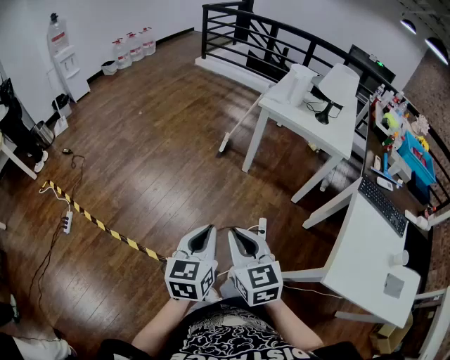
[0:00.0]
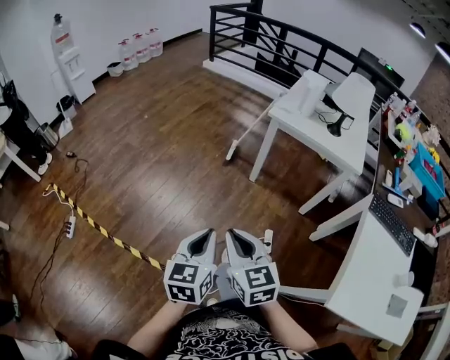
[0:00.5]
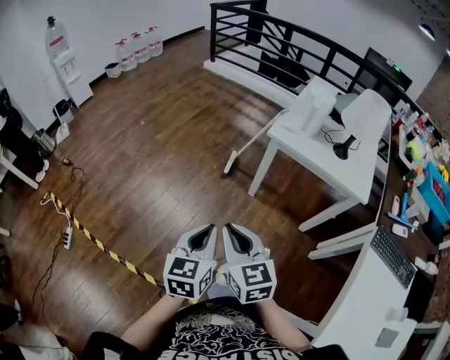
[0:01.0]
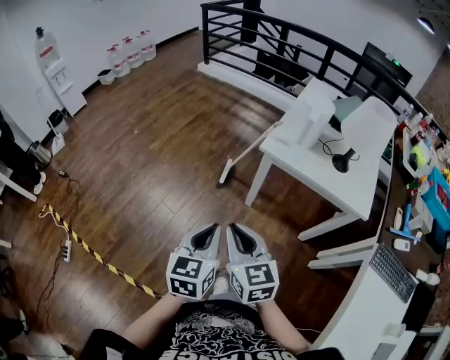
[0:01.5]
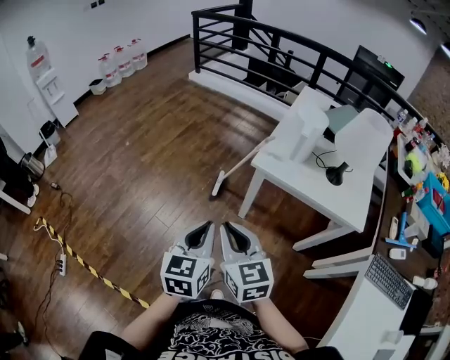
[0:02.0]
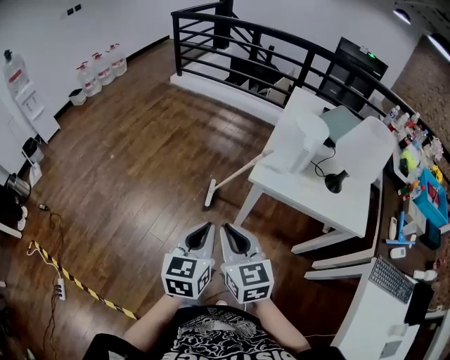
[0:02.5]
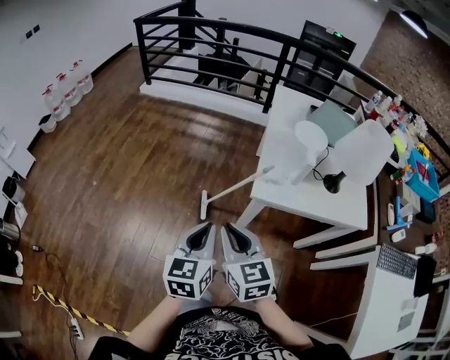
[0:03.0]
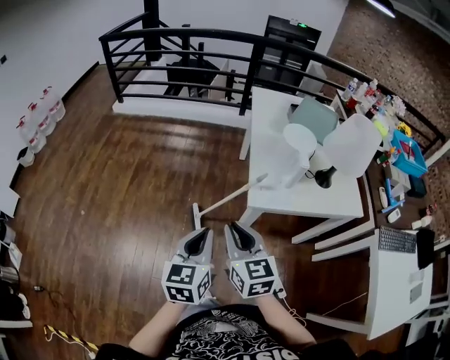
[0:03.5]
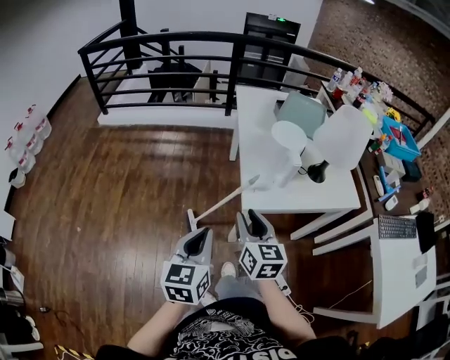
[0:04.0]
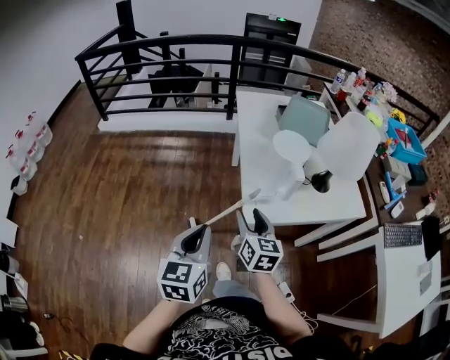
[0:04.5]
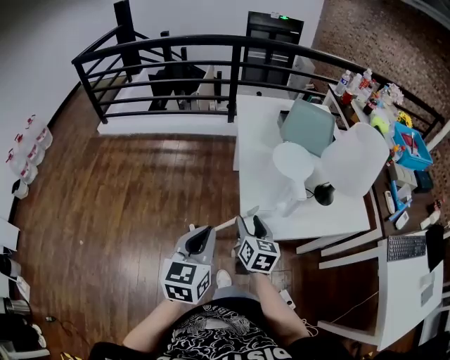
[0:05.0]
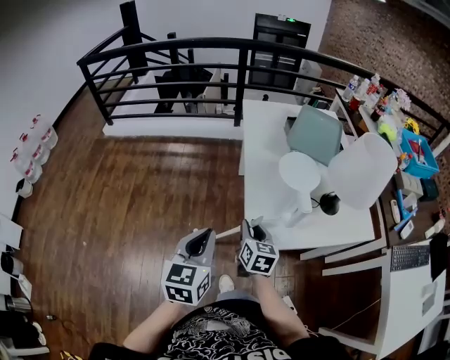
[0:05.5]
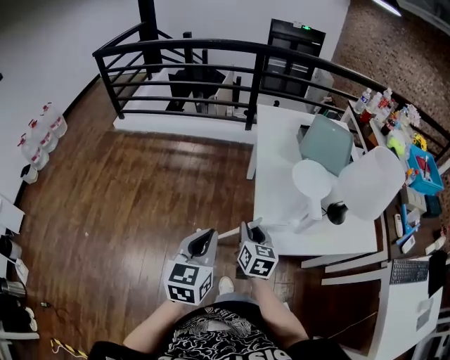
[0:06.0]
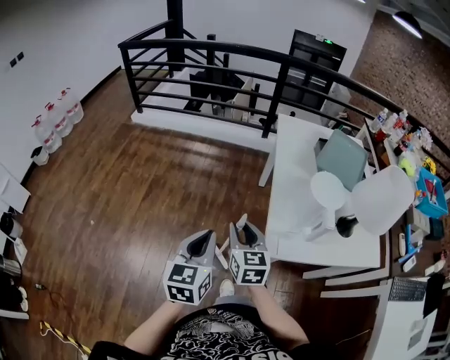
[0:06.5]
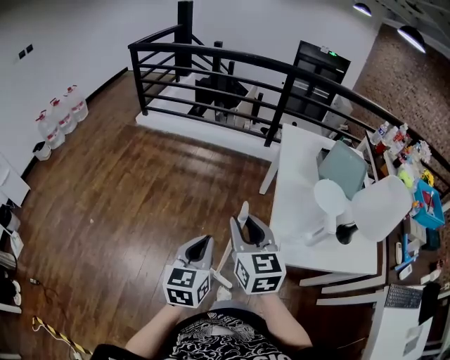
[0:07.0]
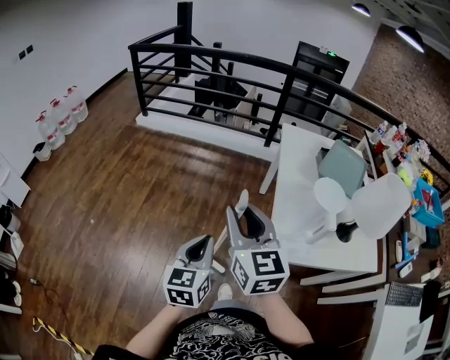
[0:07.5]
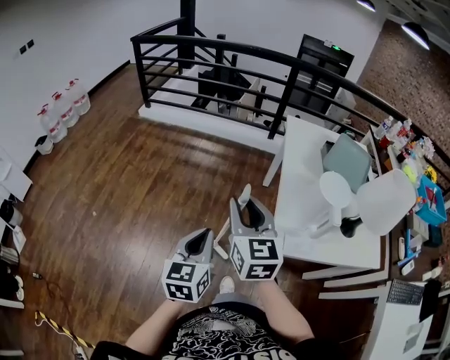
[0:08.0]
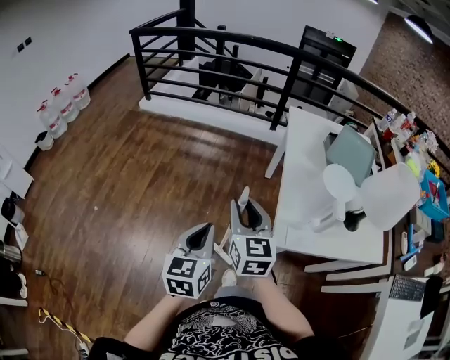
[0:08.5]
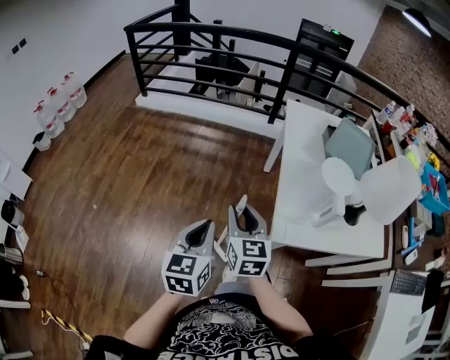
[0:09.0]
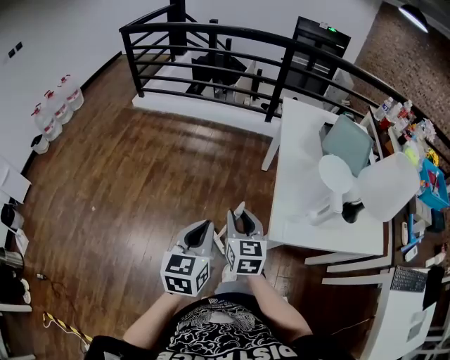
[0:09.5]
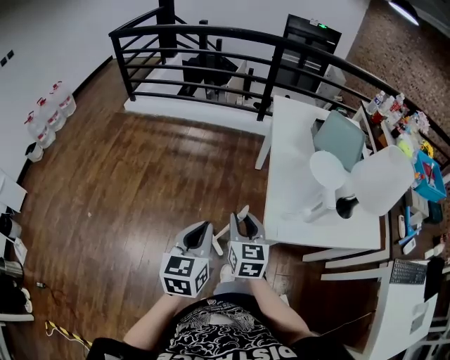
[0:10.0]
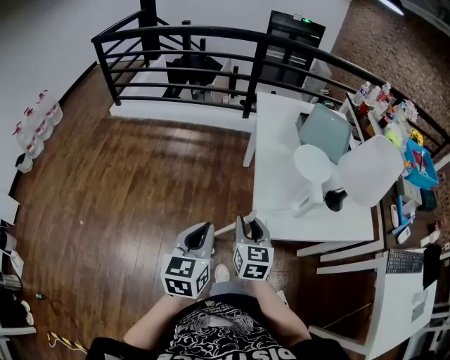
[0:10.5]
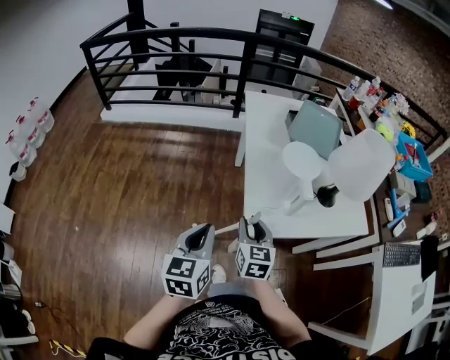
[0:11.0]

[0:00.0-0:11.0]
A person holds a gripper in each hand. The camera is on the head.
0:00.0 to 0:02.0: The pair of grippers is taken forward, about 40 cm.
0:02.0 to 0:03.5: The left gripper moves some 25 cm, and turns by some 20 degrees, while the right gripper ends up approximately 25 cm from where it was, and rotates roughly 30 degrees.
0:03.5 to 0:05.5: The left gripper is displaced forward by approximately 20 cm, while the right gripper shifts approximately 30 cm forward and downward, changes its angle by roughly 30 degrees, and opens and closes again.
0:05.5 to 0:07.5: The right gripper moves upward and to the left, some 30 cm, and rotates about 40 degrees. Meanwhile the left gripper is displaced to the left by some 10 cm.
0:07.5 to 0:09.0: The right gripper goes roughly 15 cm downward.
0:09.0 to 0:11.0: The right gripper heads to the right and downward, covering some 15 cm, while the left gripper shifts roughly 10 cm to the right.

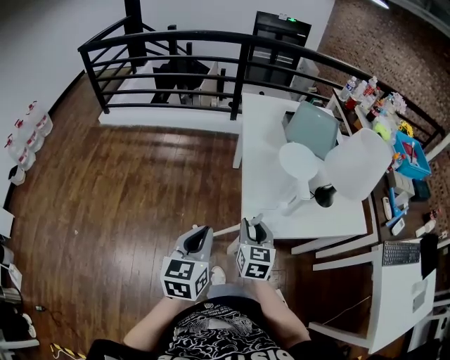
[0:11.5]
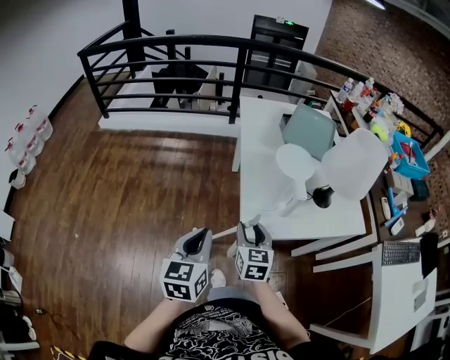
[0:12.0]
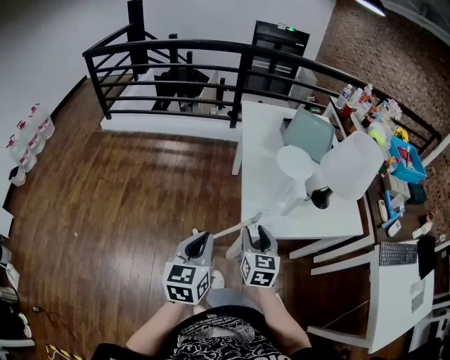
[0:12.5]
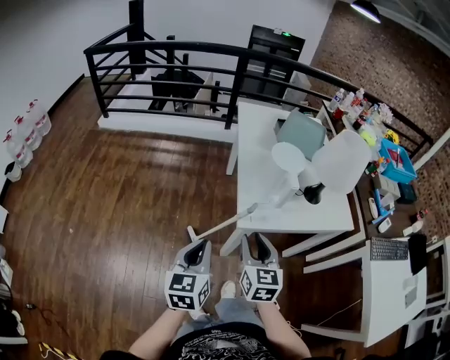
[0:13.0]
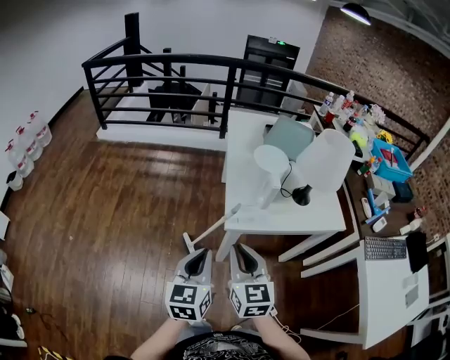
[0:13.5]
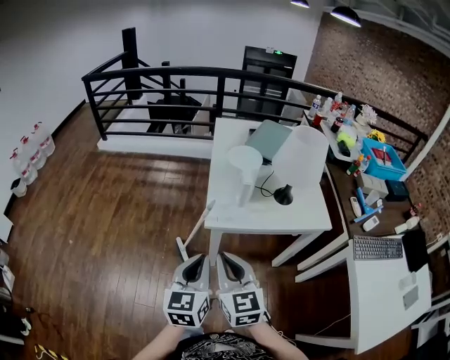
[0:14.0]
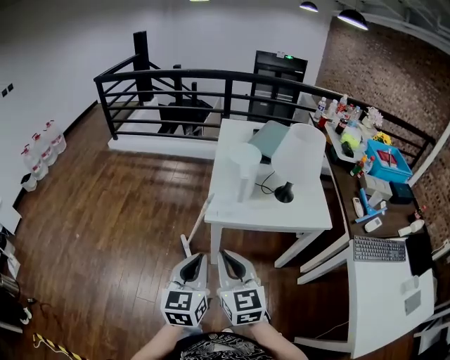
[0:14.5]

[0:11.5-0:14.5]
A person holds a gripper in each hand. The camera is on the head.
0:11.5 to 0:13.0: The right gripper heads backward and upward, covering roughly 15 cm. The left gripper travels backward by roughly 10 cm.
0:13.0 to 0:14.5: The left gripper goes roughly 20 cm to the right and backward. Meanwhile the right gripper travels backward, upward and to the right by approximately 20 cm, turns by some 20 degrees, and closes.

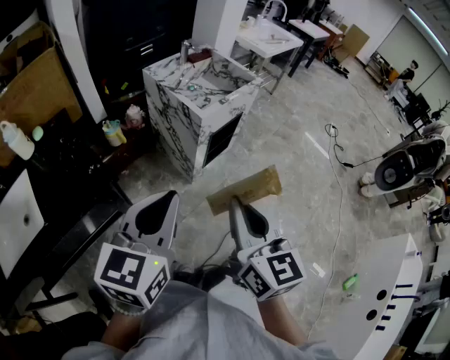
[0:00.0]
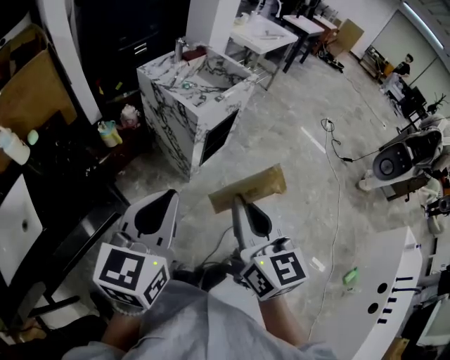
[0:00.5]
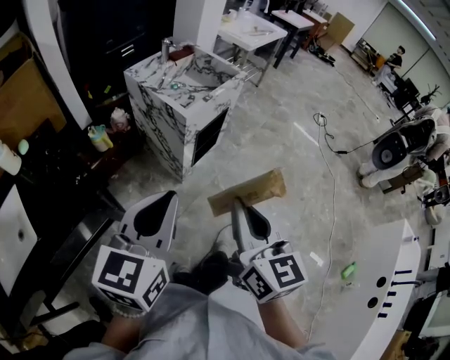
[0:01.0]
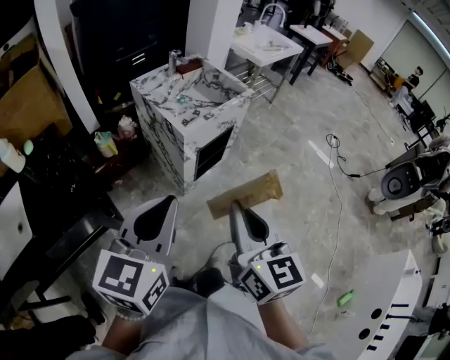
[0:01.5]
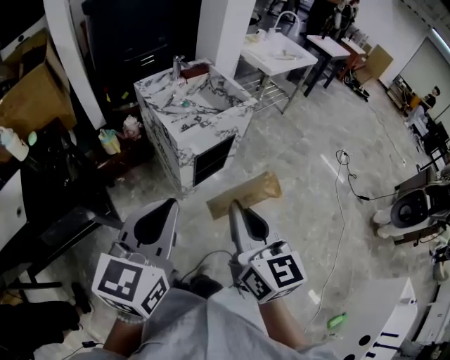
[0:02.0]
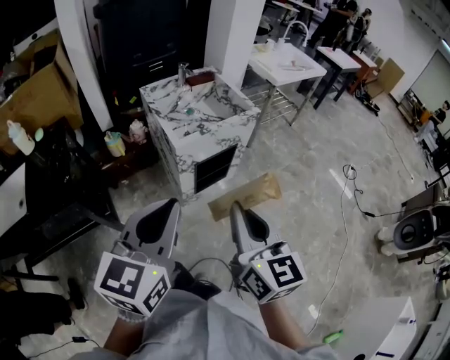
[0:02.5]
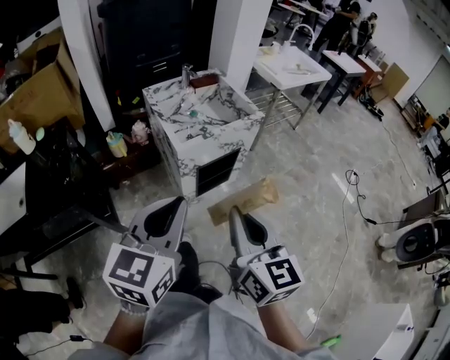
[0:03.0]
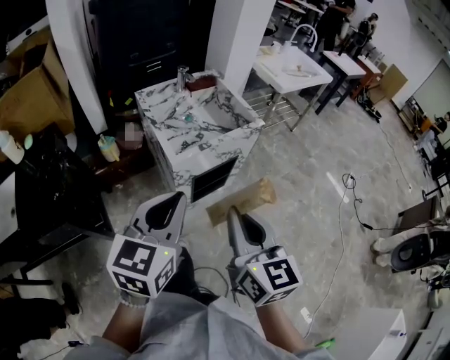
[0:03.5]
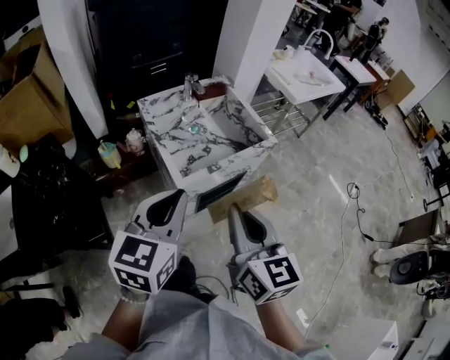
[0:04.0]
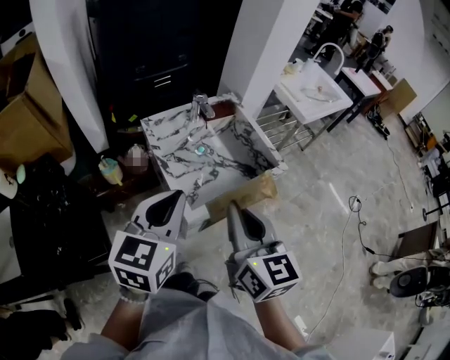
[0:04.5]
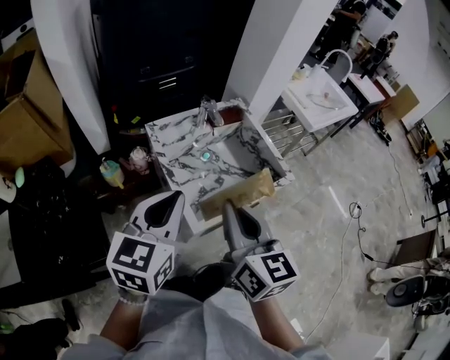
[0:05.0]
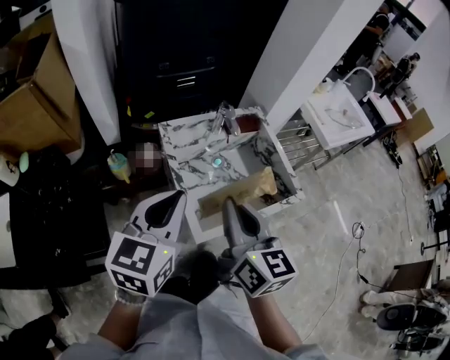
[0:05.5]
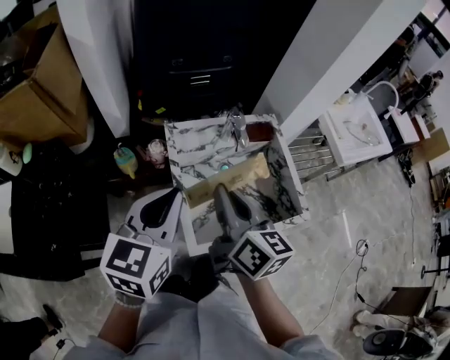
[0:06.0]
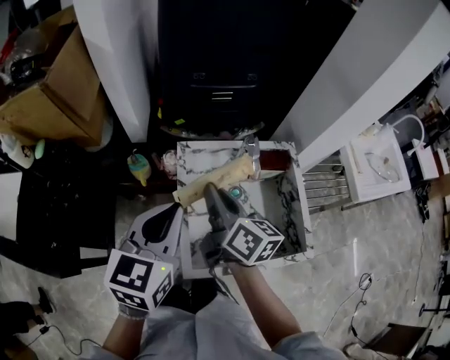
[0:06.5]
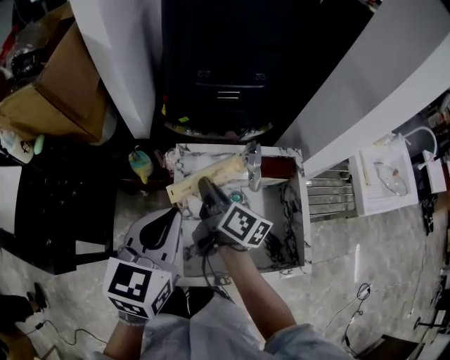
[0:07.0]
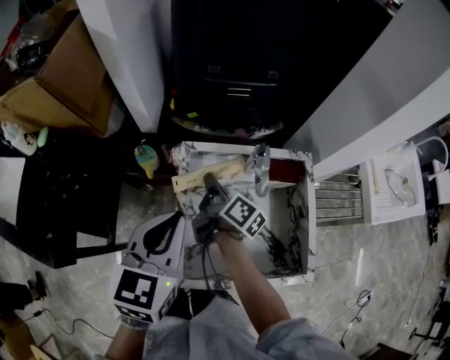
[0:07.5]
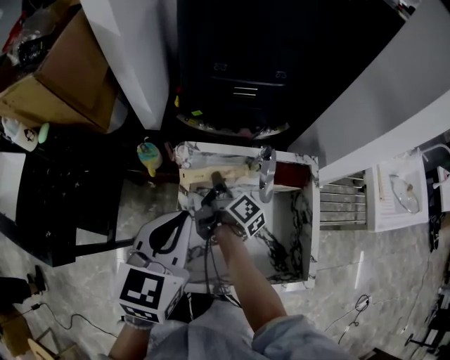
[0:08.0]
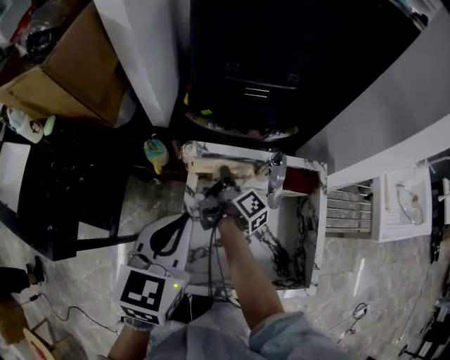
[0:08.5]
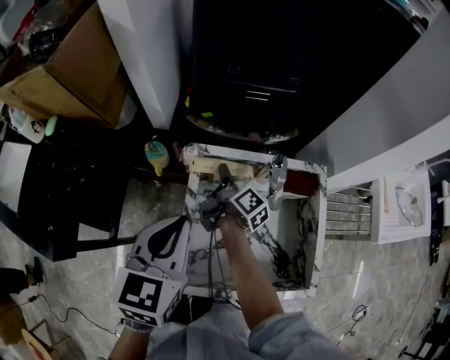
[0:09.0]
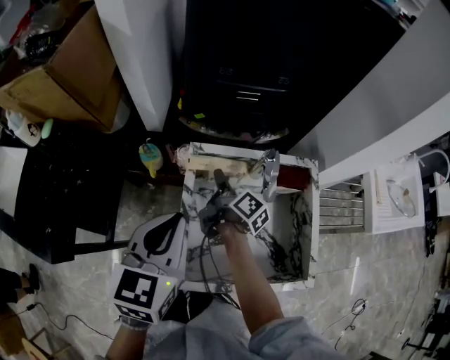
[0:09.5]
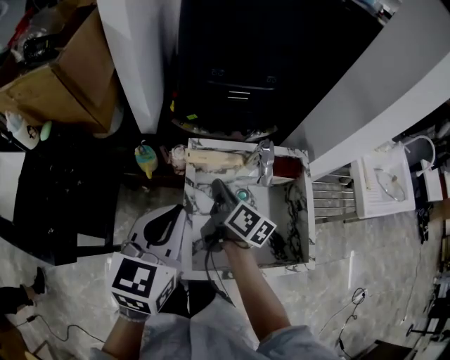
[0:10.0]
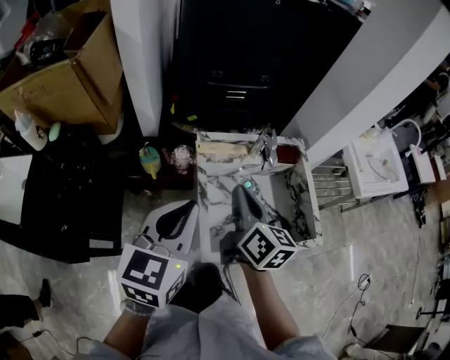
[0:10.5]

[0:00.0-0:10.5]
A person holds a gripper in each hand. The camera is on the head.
0:00.0 to 0:02.0: Both grippers move to the right and forward, some 20 cm.
0:02.0 to 0:04.0: Both grippers move forward, about 25 cm.
0:04.0 to 0:06.5: The right gripper changes place by approximately 40 cm, and rotates roughly 40 degrees, while the left gripper ends up roughly 30 cm from where it was, and turns by about 30 degrees.
0:06.5 to 0:08.5: The right gripper is displaced downward and forward by about 25 cm, and twists approximately 40 degrees clockwise, seen from behind, while the left gripper ends up about 5 cm from where it was.
0:08.5 to 0:10.5: The right gripper heads backward and upward, covering some 30 cm, rolls counterclockwise, seen from behind, by about 50 degrees, and opens and closes again. The left gripper heads backward, to the left and upward, covering some 15 cm.

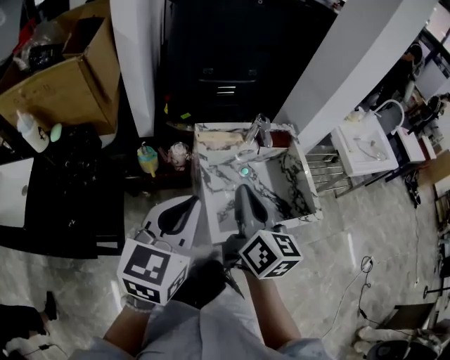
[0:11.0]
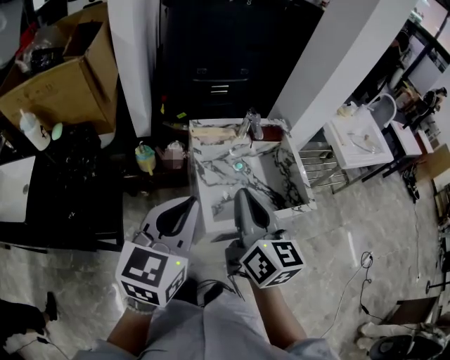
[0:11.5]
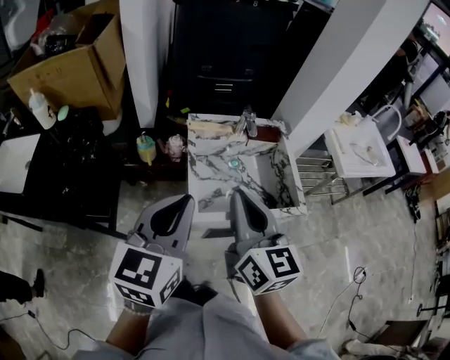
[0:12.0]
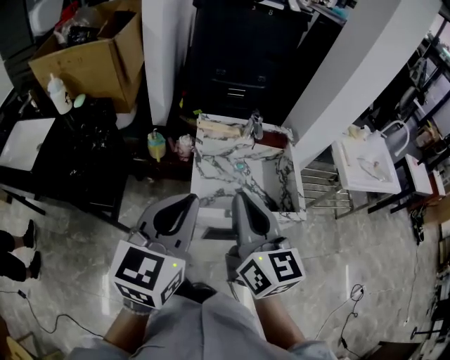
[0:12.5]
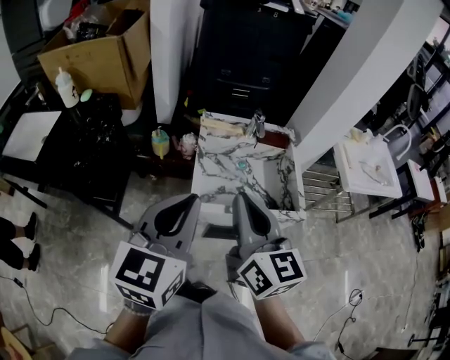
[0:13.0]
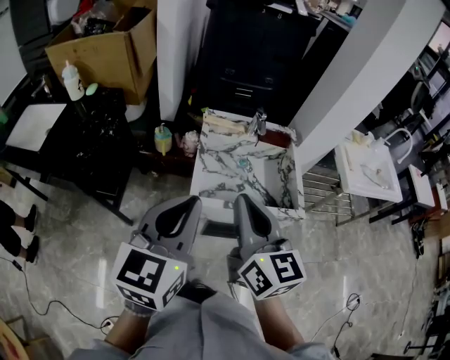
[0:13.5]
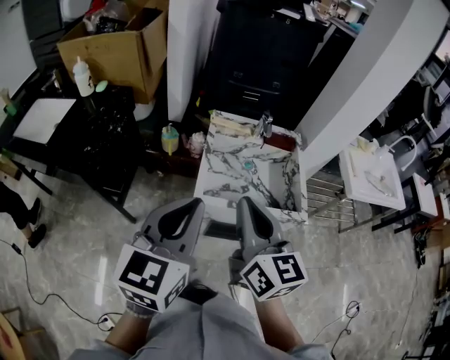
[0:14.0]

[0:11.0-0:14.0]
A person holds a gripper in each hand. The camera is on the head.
0:11.0 to 0:12.5: The right gripper moves backward, to the right and upward, about 15 cm, and changes its angle by approximately 20 degrees, while the left gripper goes roughly 15 cm backward and to the right.
0:12.5 to 0:14.0: Both grippers travel together backward, approximately 5 cm.
